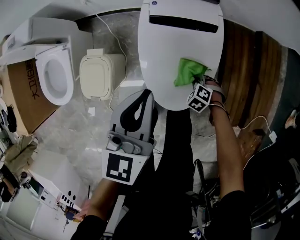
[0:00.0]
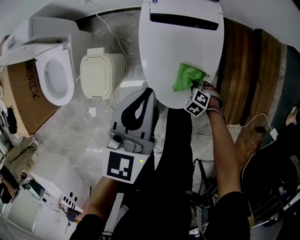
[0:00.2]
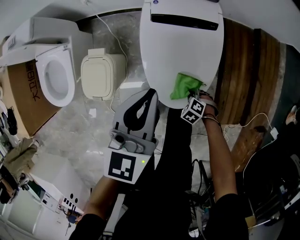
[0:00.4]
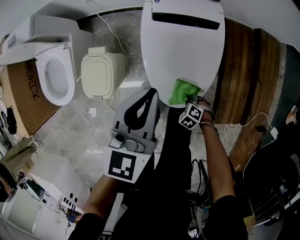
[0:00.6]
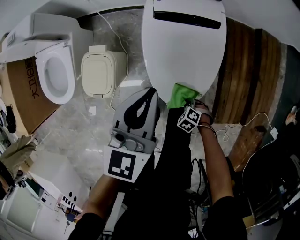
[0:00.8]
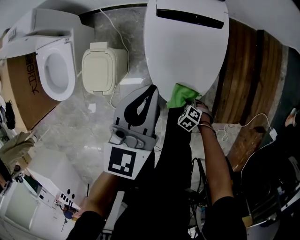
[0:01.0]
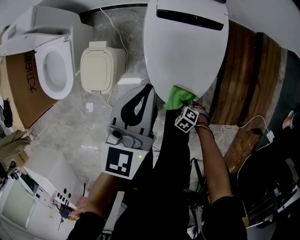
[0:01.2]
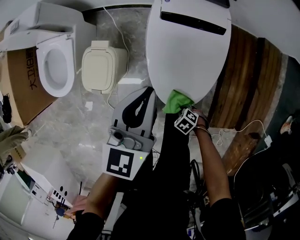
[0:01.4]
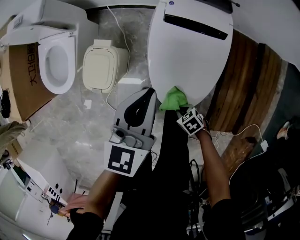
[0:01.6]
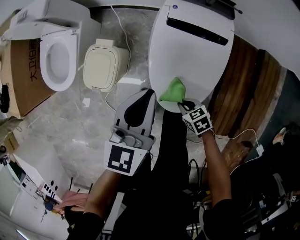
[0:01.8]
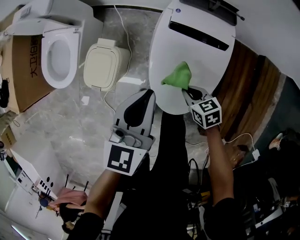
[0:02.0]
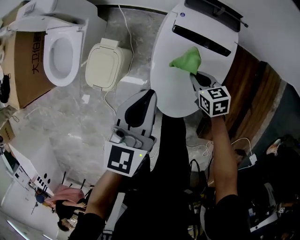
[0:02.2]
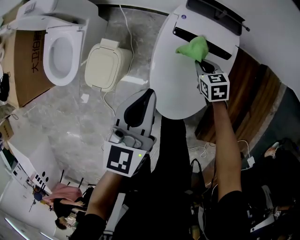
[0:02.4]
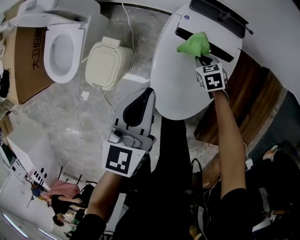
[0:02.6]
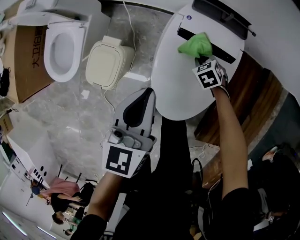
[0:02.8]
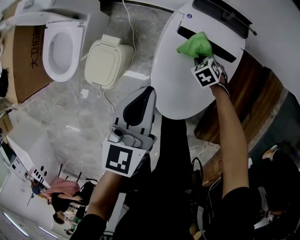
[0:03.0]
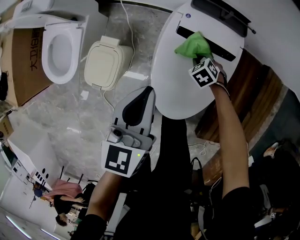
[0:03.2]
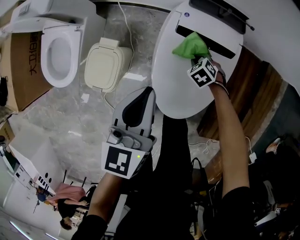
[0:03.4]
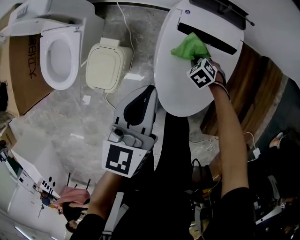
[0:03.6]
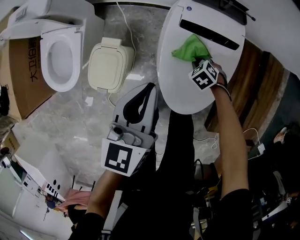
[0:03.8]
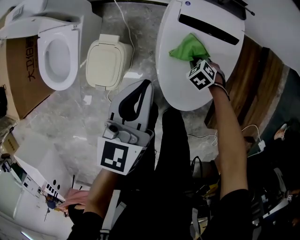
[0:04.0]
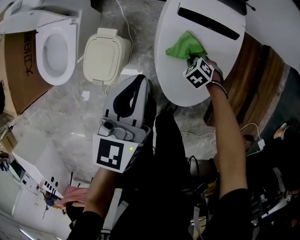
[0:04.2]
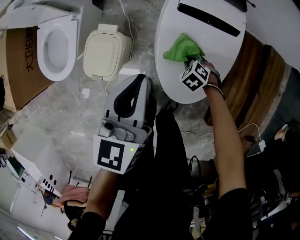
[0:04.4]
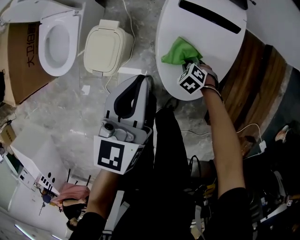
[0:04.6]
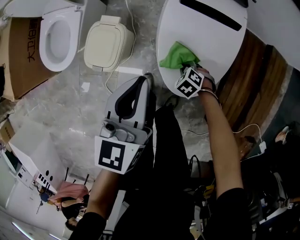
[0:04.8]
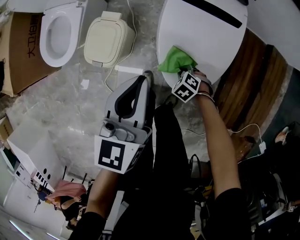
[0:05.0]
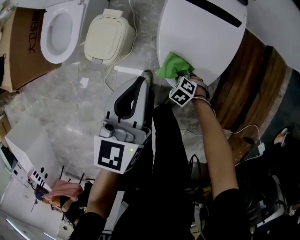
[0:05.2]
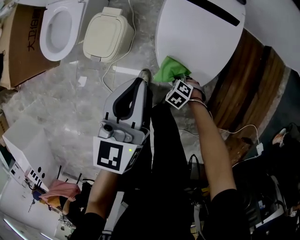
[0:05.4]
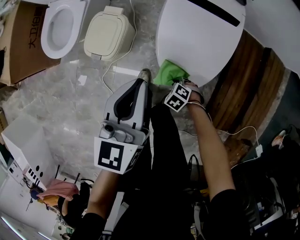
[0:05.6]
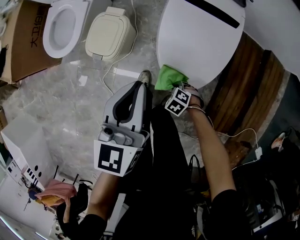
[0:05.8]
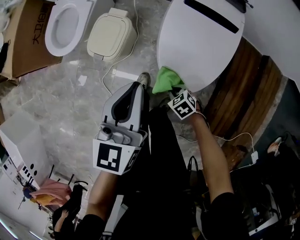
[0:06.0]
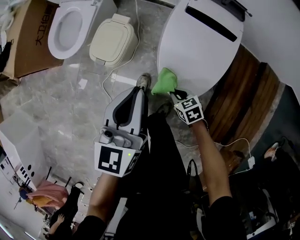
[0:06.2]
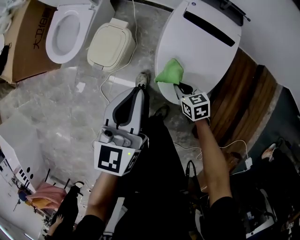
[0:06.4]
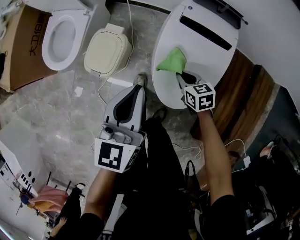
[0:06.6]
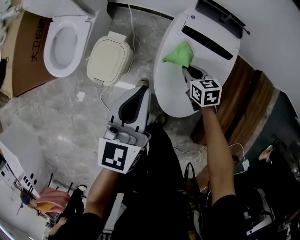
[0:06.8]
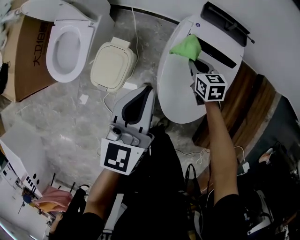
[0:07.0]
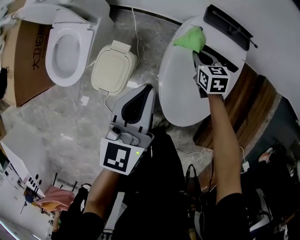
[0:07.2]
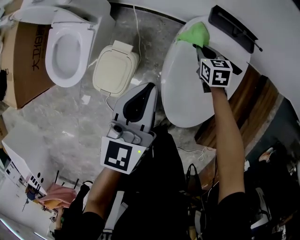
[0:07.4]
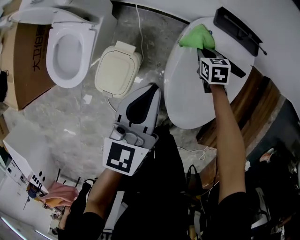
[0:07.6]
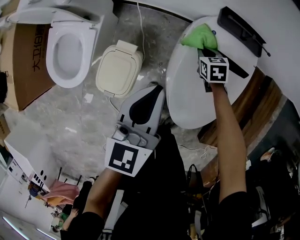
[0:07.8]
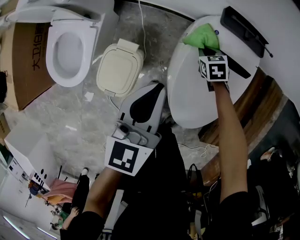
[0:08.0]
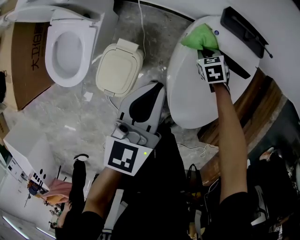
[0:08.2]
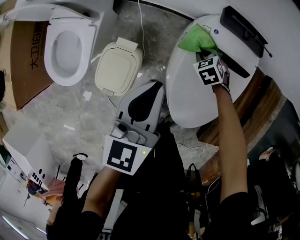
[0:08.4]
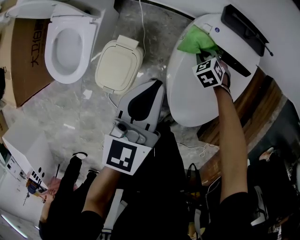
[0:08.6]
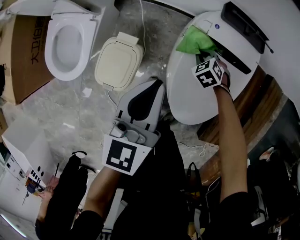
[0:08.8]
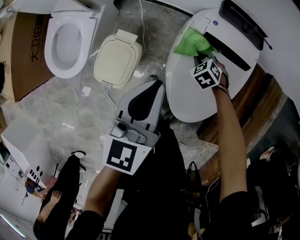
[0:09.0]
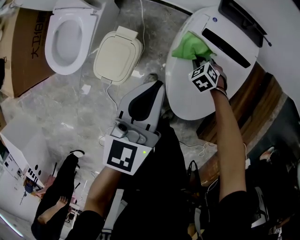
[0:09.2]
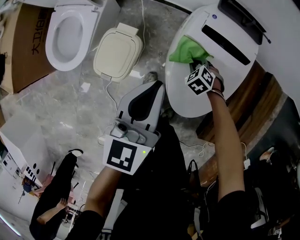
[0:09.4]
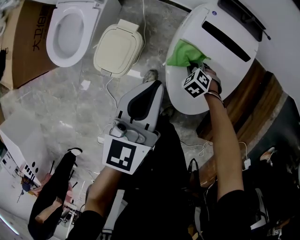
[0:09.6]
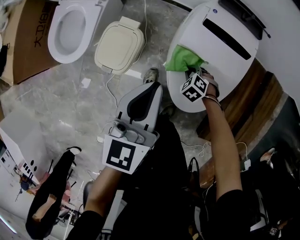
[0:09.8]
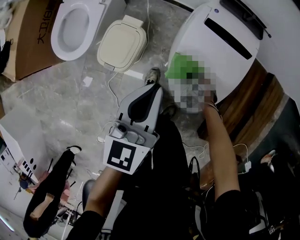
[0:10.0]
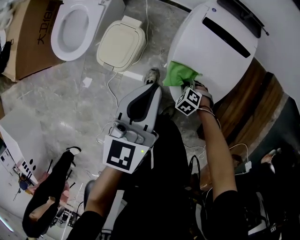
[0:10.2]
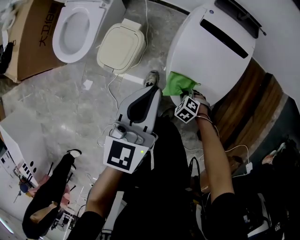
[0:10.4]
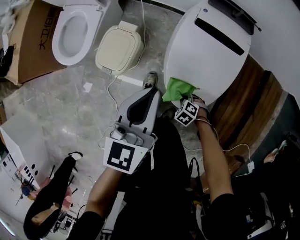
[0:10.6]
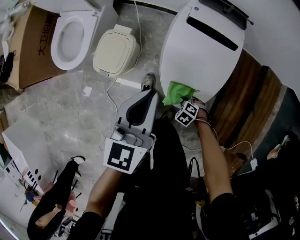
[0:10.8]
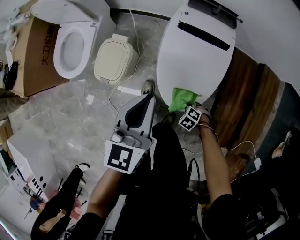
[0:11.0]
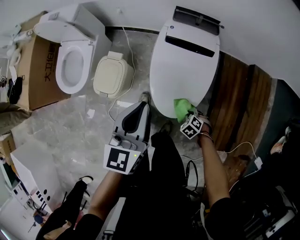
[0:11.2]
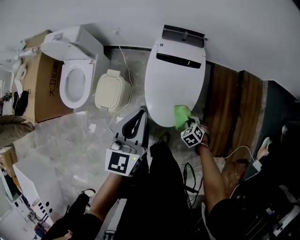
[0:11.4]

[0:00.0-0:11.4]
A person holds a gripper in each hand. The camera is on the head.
0:00.0 to 0:01.4: The right gripper shifts by approximately 20 cm, and turns by approximately 30 degrees.
0:01.4 to 0:02.8: The left gripper changes place by approximately 5 cm. Meanwhile the right gripper ends up approximately 40 cm from where it was, and swivels some 20 degrees.
0:02.8 to 0:04.2: The right gripper ends up approximately 15 cm from where it was. Meanwhile the left gripper changes place by approximately 5 cm.
0:04.2 to 0:05.6: The left gripper moves approximately 15 cm, while the right gripper ends up approximately 25 cm from where it was.
0:05.6 to 0:07.2: The left gripper shifts by approximately 20 cm; the right gripper ends up about 40 cm from where it was, and points its fingers roughly 30 degrees further upward.
0:07.2 to 0:08.6: The left gripper ends up approximately 5 cm from where it was, while the right gripper heads downward, covering about 10 cm, and changes its angle by approximately 40 degrees.
0:08.6 to 0:10.0: The right gripper changes place by some 25 cm; the left gripper ends up about 15 cm from where it was.
0:10.0 to 0:11.4: The left gripper shifts approximately 15 cm upward. The right gripper ends up some 25 cm from where it was, and turns by approximately 30 degrees.

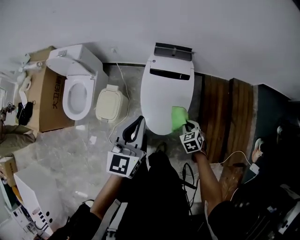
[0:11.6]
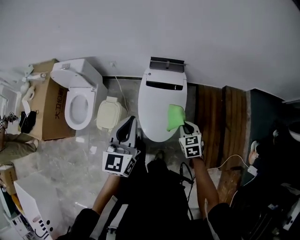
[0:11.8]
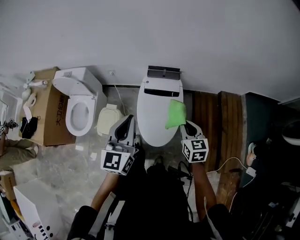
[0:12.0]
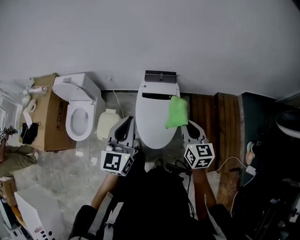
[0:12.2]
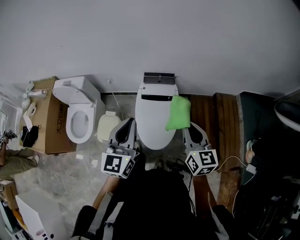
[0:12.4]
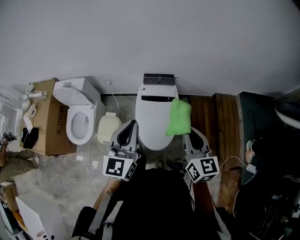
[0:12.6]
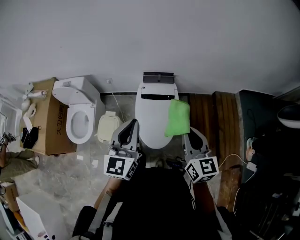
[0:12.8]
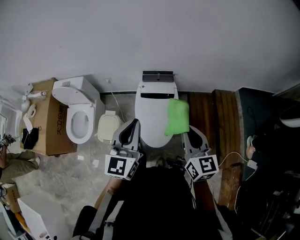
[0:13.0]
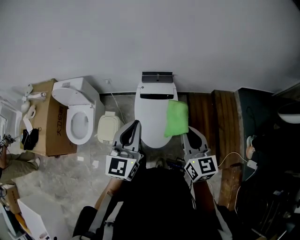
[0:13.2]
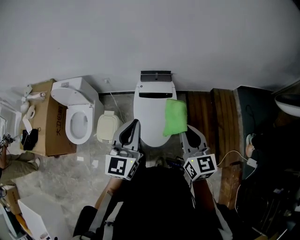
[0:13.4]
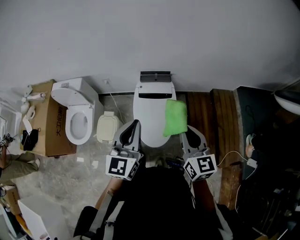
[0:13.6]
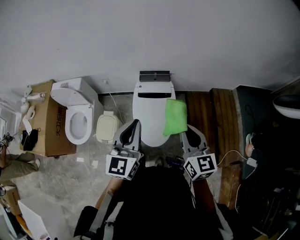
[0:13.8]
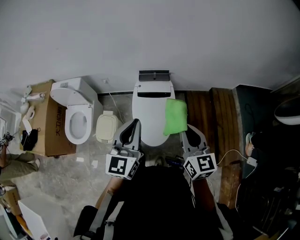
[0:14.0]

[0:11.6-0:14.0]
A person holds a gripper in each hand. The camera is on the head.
0:11.6 to 0:12.8: The left gripper goes roughly 15 cm upward, while the right gripper travels upward by about 40 cm, and tips its fingers upward by some 50 degrees.
0:12.8 to 0:14.0: The grippers make only small movements.

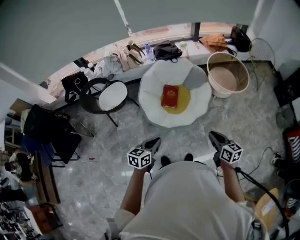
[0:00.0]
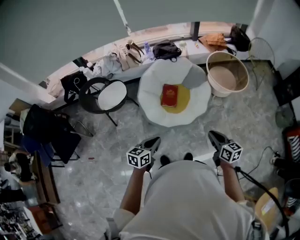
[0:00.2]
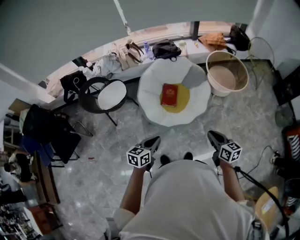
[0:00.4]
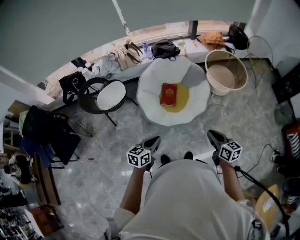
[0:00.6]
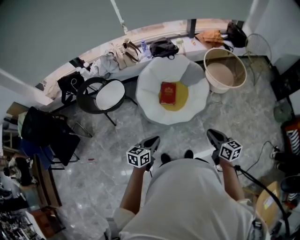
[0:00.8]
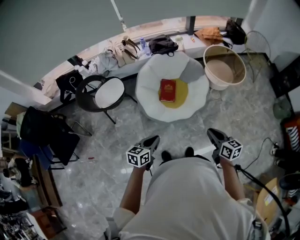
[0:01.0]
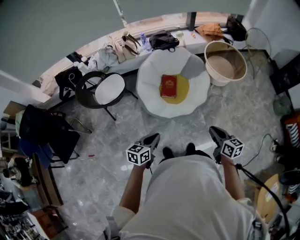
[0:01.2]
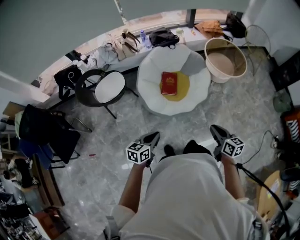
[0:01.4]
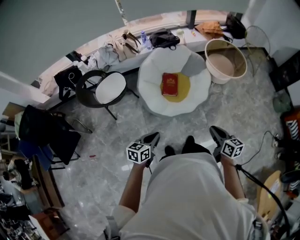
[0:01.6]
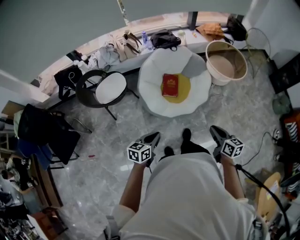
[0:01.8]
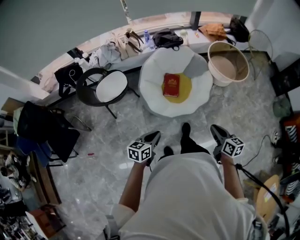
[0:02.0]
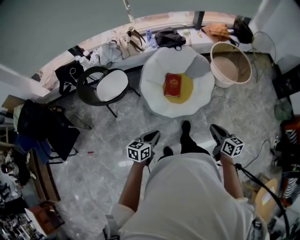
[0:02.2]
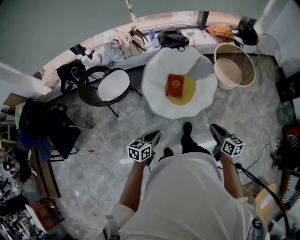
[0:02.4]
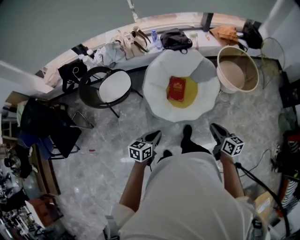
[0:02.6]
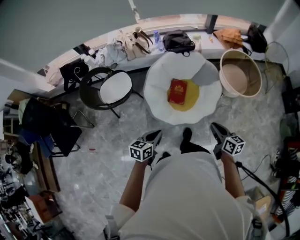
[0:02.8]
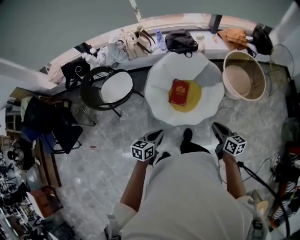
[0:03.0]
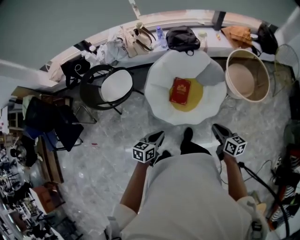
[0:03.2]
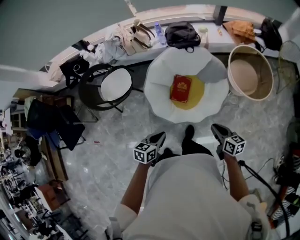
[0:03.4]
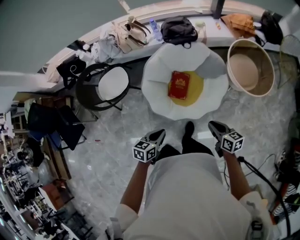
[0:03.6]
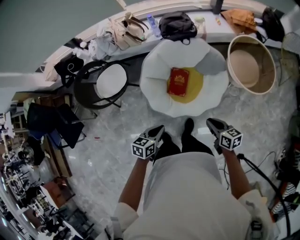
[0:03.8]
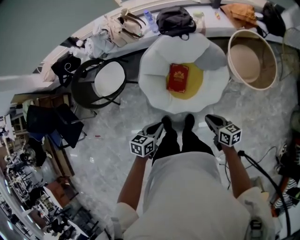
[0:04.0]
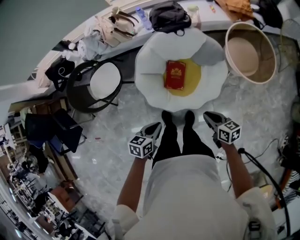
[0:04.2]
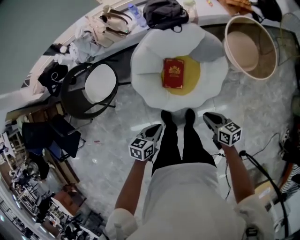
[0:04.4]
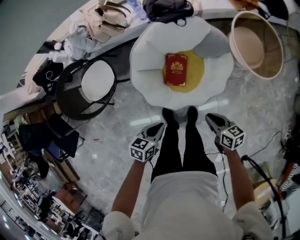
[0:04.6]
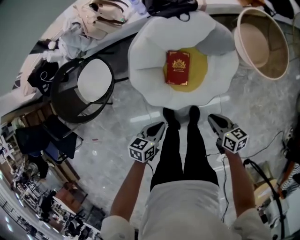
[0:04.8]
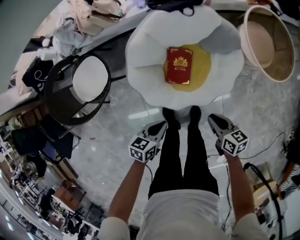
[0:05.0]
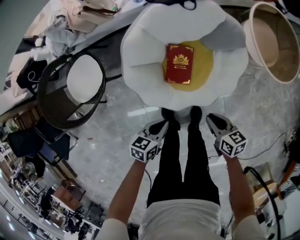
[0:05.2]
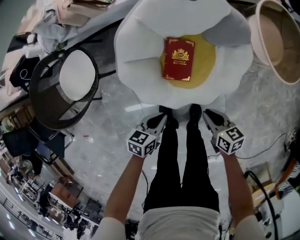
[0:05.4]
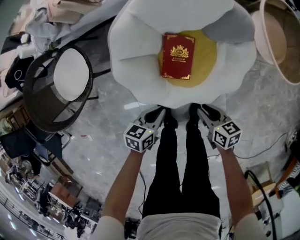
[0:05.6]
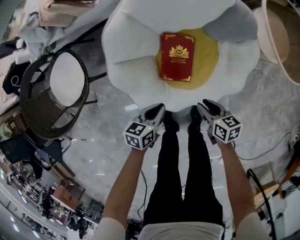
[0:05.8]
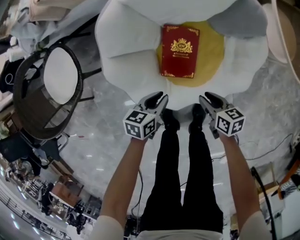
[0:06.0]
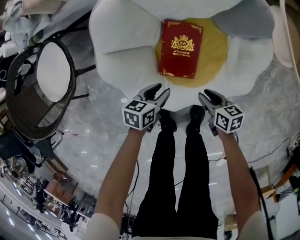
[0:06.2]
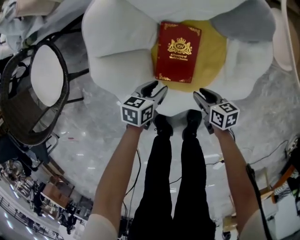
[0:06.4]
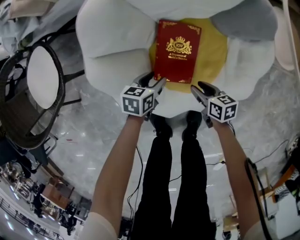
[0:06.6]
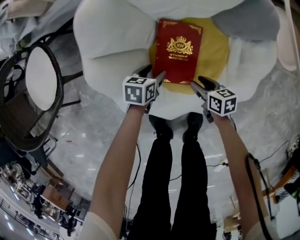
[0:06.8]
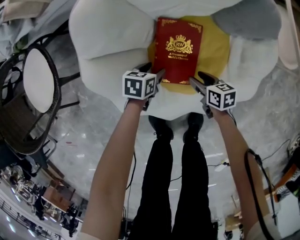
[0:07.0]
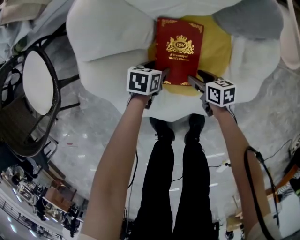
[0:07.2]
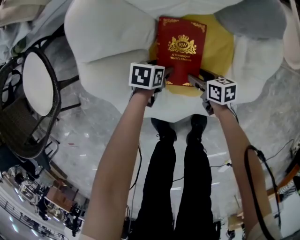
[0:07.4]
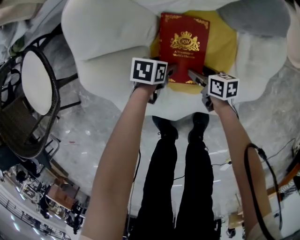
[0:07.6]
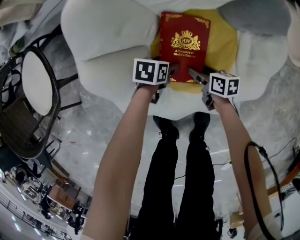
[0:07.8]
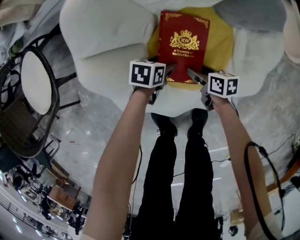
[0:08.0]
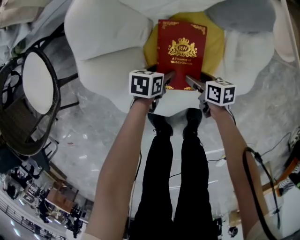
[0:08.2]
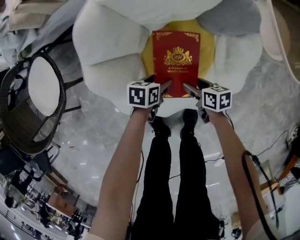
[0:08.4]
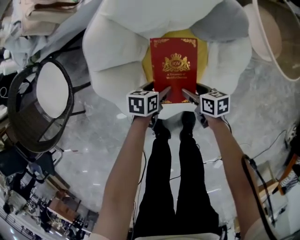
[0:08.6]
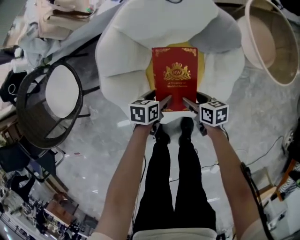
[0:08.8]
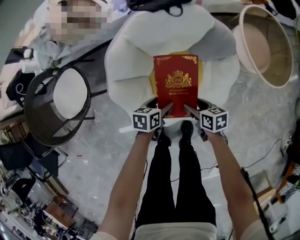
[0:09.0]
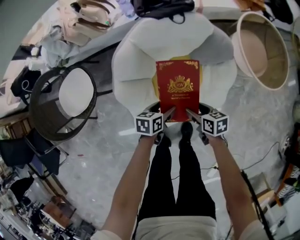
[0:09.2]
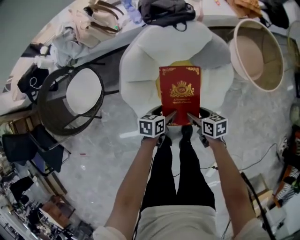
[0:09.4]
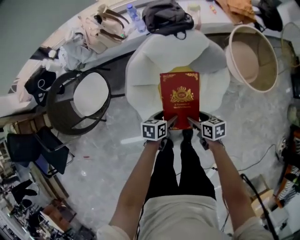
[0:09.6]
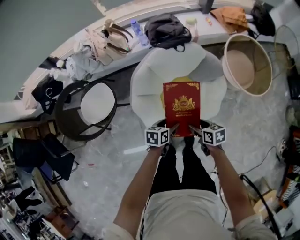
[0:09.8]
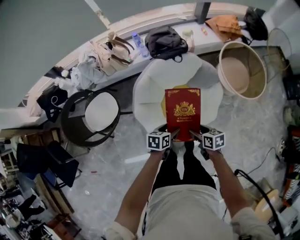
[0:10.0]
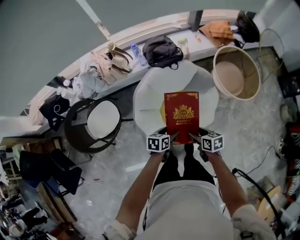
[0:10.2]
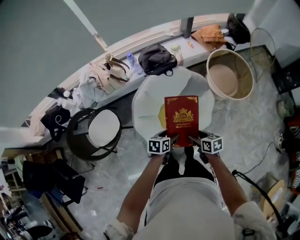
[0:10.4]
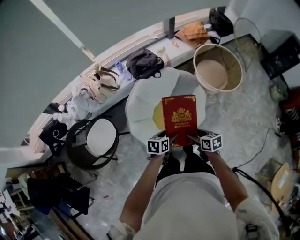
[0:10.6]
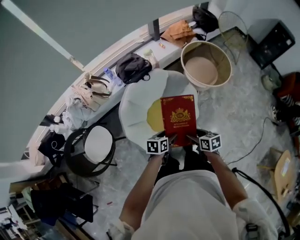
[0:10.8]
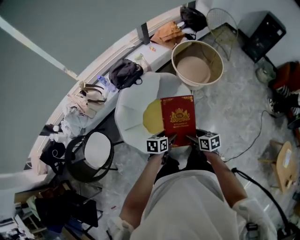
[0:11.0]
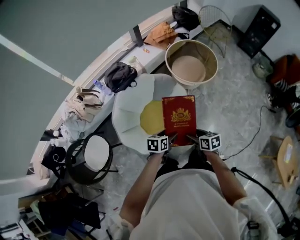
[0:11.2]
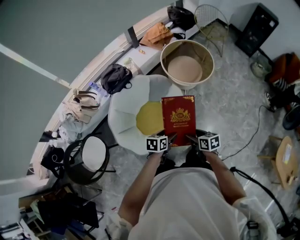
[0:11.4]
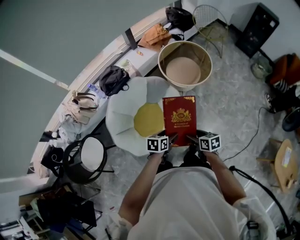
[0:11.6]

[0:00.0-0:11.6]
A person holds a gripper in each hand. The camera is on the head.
0:00.0 to 0:01.4: The two grippers go roughly 5 cm to the left.
0:01.4 to 0:02.8: The grippers both shift forward by about 15 cm.
0:02.8 to 0:04.4: The right gripper shifts about 25 cm forward and downward, while the left gripper goes roughly 20 cm forward, downward and to the right.
0:04.4 to 0:05.8: The grippers both shift downward by roughly 35 cm.
0:05.8 to 0:07.2: The right gripper moves downward, approximately 25 cm, and opens up, while the left gripper heads downward and forward, covering some 30 cm, and opens its fingers.
0:07.2 to 0:08.8: Both grippers move upward, roughly 20 cm.
0:08.8 to 0:10.2: Both grippers travel together upward, about 35 cm.
0:10.2 to 0:11.6: Both grippers move to the right, approximately 25 cm. The right gripper turns by some 20 degrees, while the left gripper rotates some 20 degrees.
